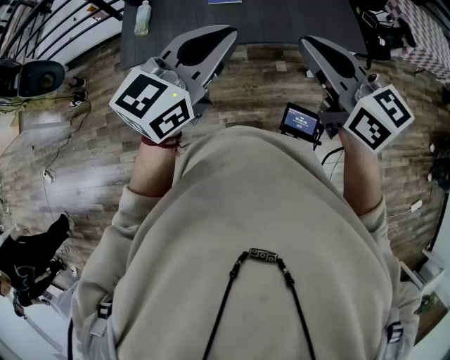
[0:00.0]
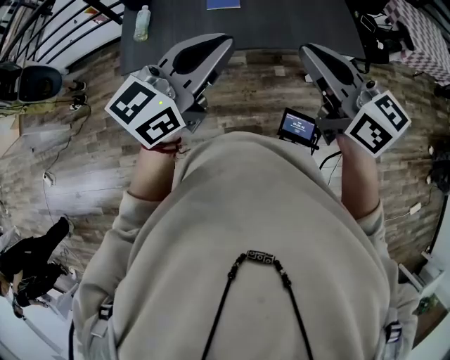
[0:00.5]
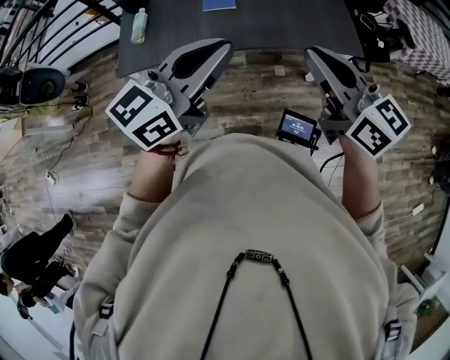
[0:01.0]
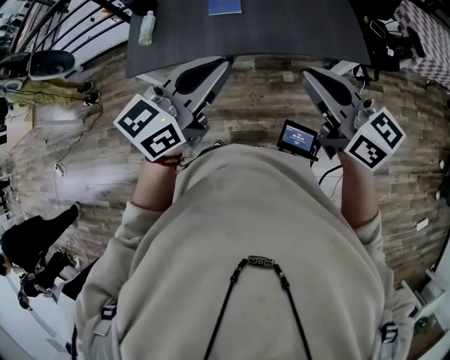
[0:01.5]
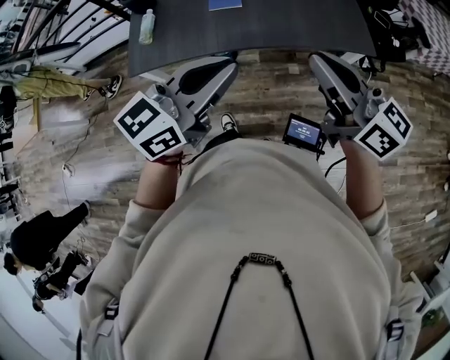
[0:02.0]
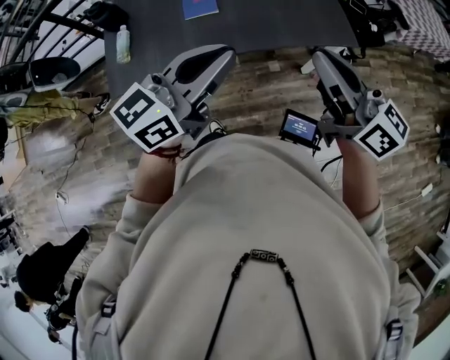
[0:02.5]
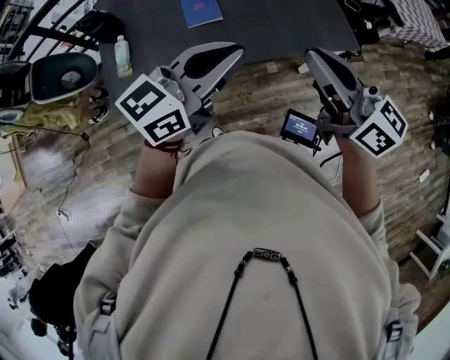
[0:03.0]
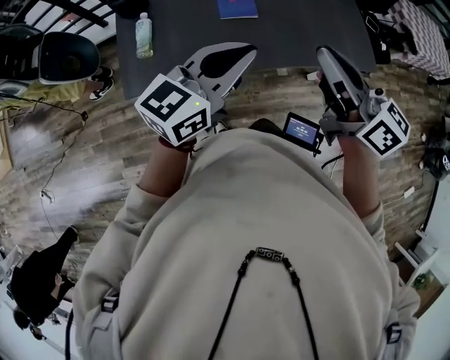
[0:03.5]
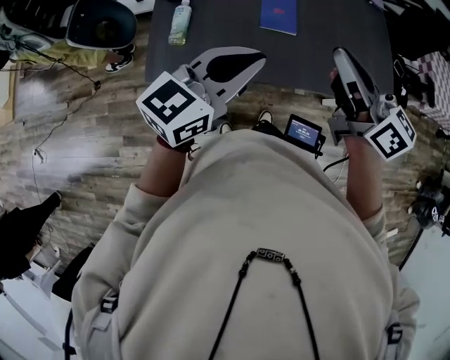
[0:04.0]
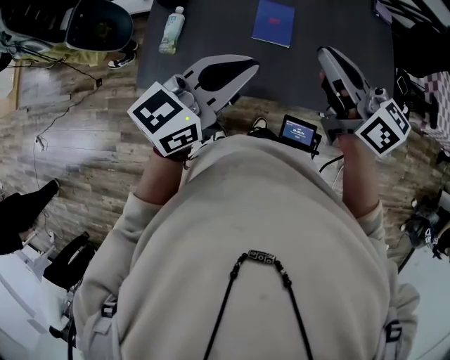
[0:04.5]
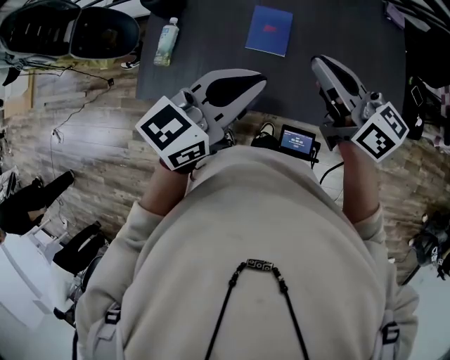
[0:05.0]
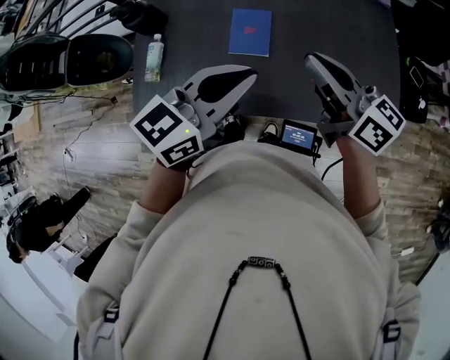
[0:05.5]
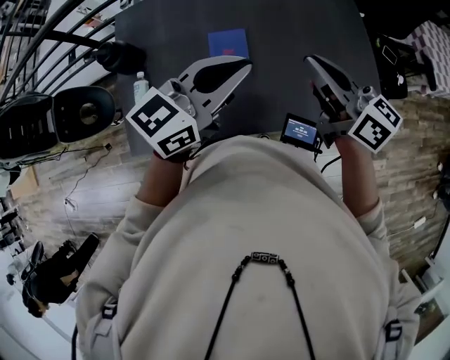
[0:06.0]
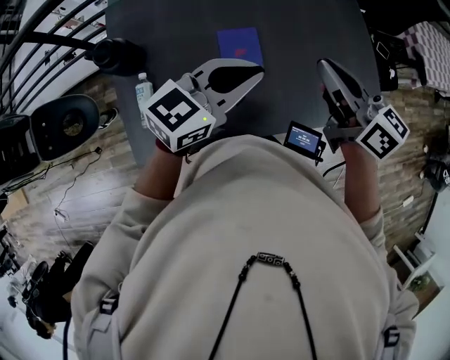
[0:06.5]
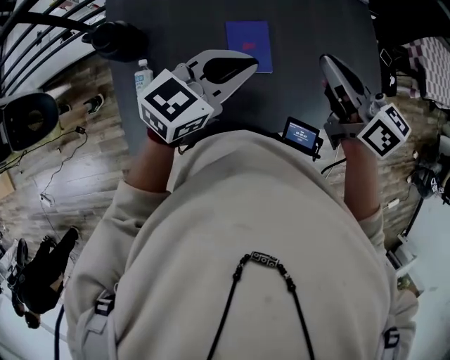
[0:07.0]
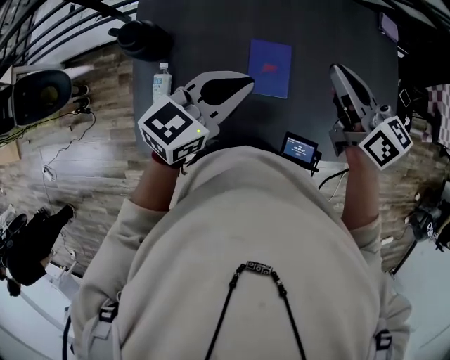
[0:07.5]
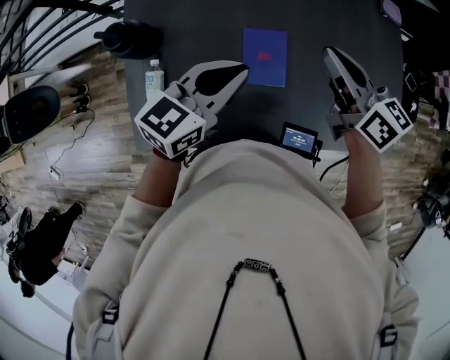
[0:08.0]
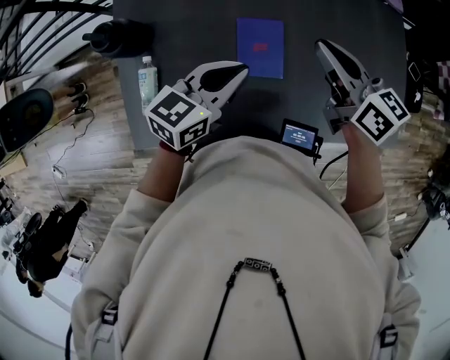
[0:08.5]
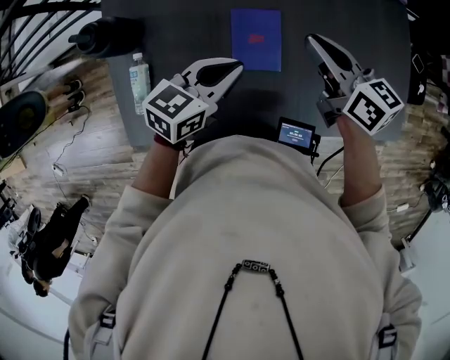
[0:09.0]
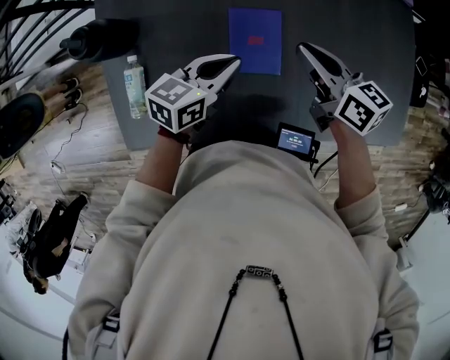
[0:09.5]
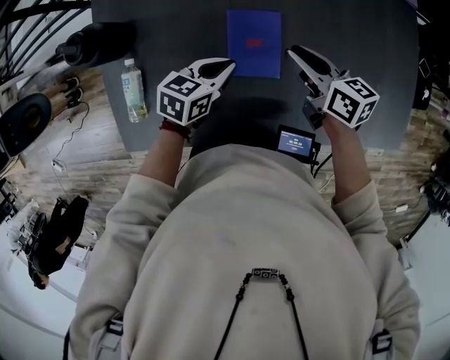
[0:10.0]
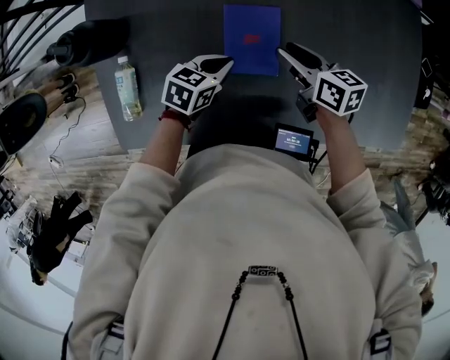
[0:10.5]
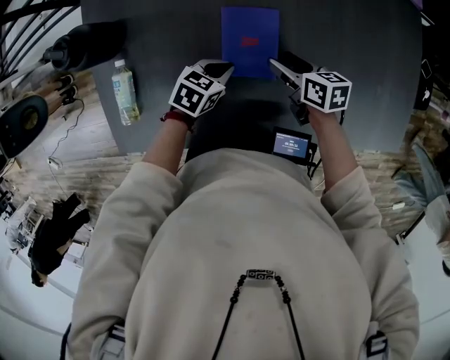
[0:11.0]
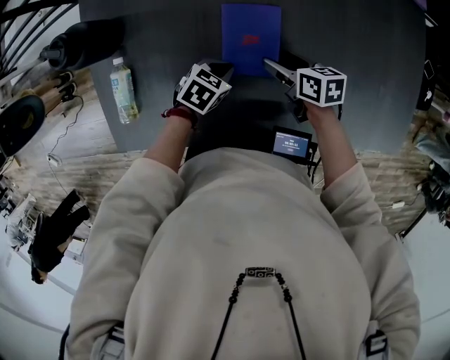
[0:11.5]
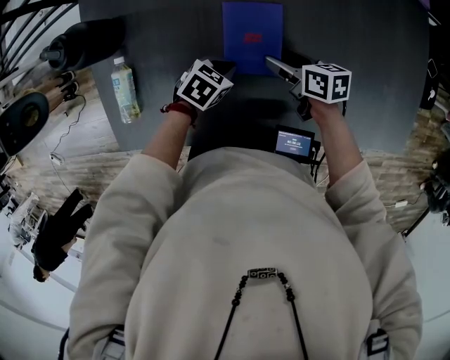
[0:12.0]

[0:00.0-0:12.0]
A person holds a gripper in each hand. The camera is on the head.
0:00.0 to 0:02.0: The right gripper ends up approximately 5 cm from where it was.
0:02.0 to 0:04.0: Both grippers move to the left and forward, approximately 25 cm.
0:04.0 to 0:06.0: Both grippers move forward and to the right, roughly 20 cm.
0:06.0 to 0:08.0: The right gripper goes approximately 15 cm forward, to the left and downward. The left gripper shifts some 15 cm to the left, downward and forward.
0:08.0 to 0:10.0: The grippers both shift downward by about 20 cm. The left gripper changes its angle by approximately 30 degrees.
0:10.0 to 0:12.0: Both grippers travel together downward, about 10 cm. The right gripper opens its fingers. The left gripper turns by about 30 degrees.

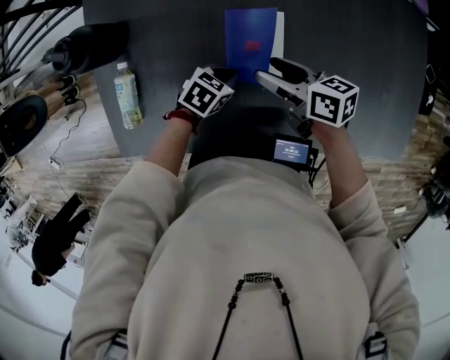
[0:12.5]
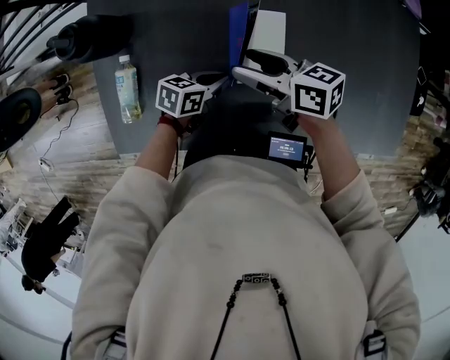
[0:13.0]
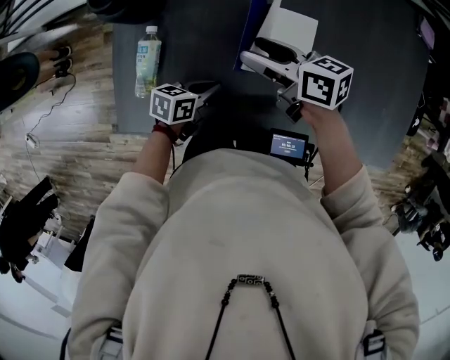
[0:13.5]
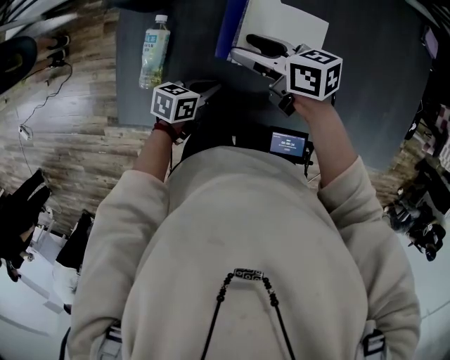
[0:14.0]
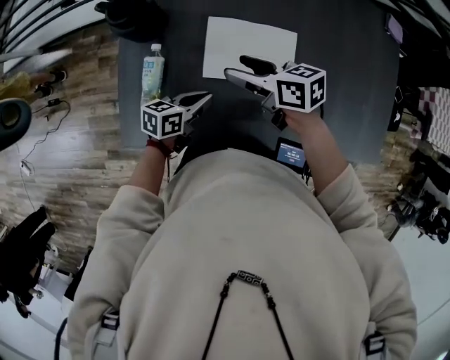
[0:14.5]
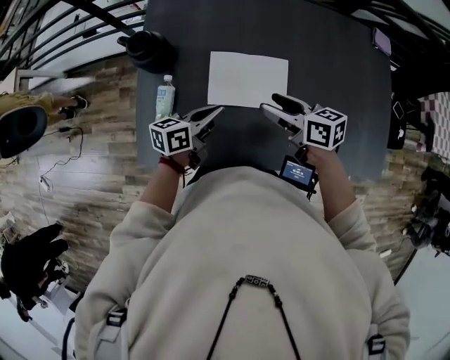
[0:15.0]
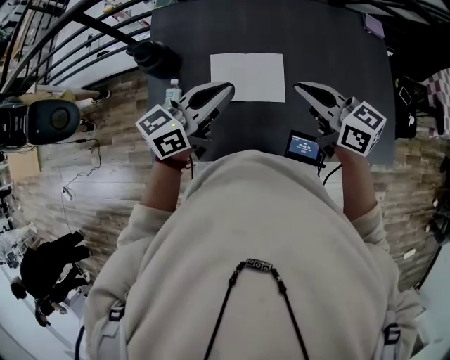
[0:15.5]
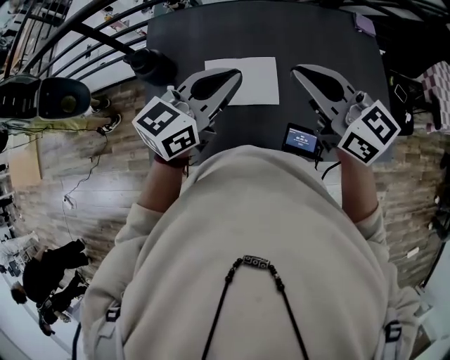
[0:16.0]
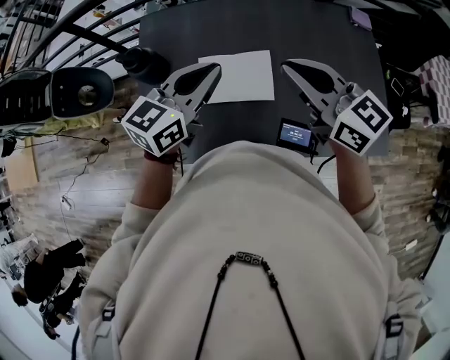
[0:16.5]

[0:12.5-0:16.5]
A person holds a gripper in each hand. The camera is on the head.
0:12.5 to 0:14.5: The left gripper moves some 15 cm, and turns by roughly 40 degrees; the right gripper shifts by some 15 cm.
0:14.5 to 0:16.5: Both grippers travel together upward, approximately 30 cm. The left gripper rotates approximately 40 degrees. Meanwhile the right gripper swivels about 40 degrees, and closes.

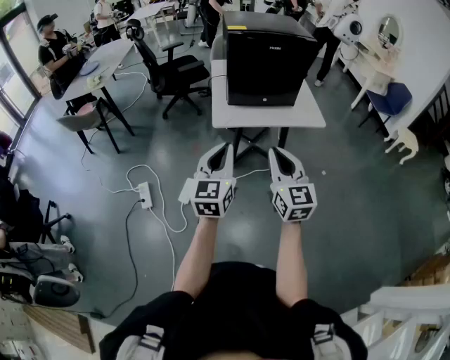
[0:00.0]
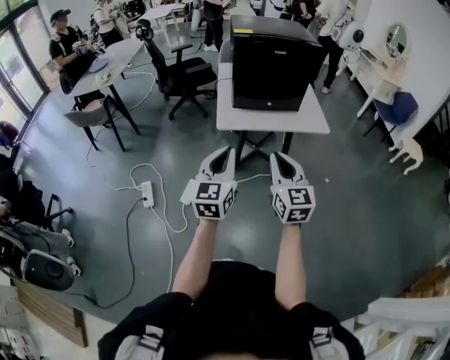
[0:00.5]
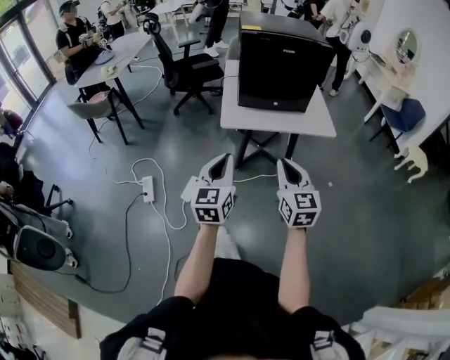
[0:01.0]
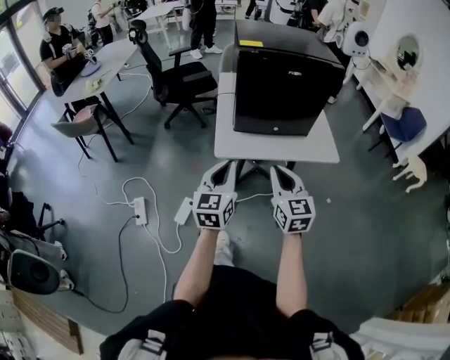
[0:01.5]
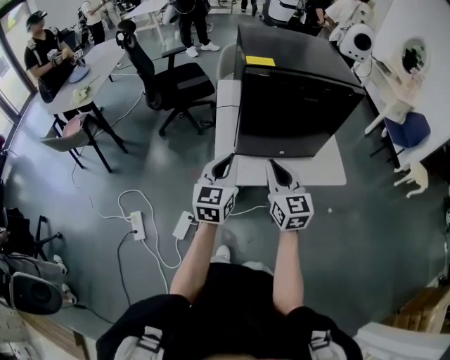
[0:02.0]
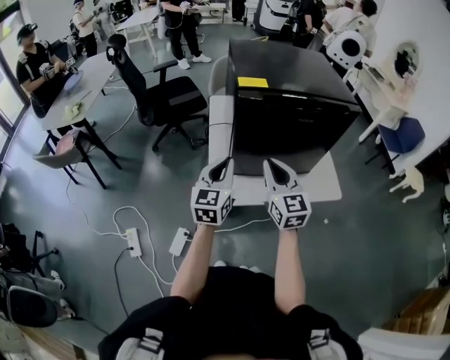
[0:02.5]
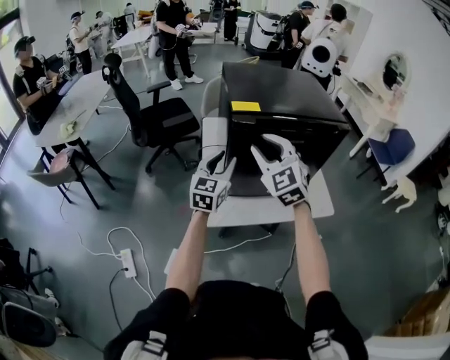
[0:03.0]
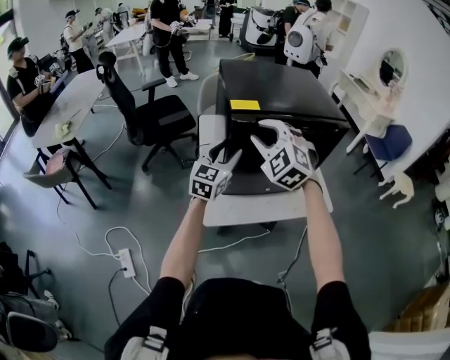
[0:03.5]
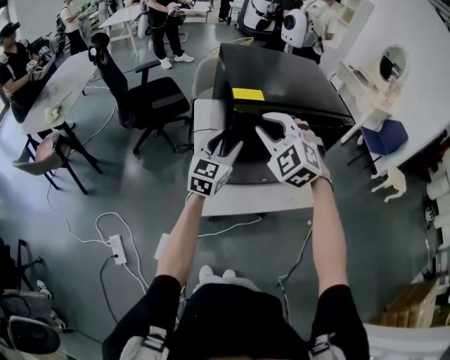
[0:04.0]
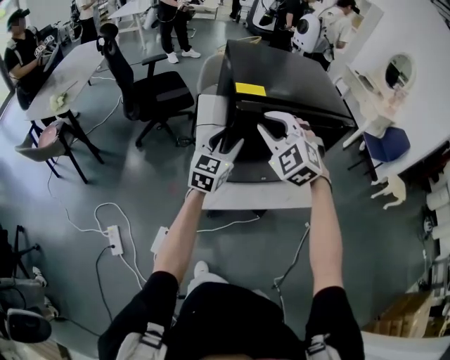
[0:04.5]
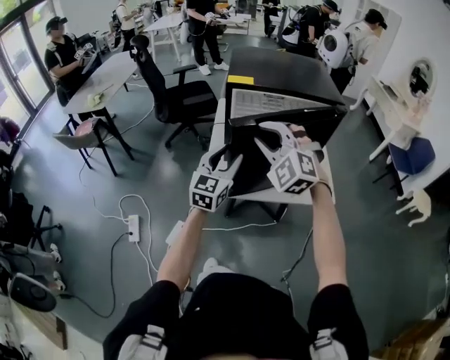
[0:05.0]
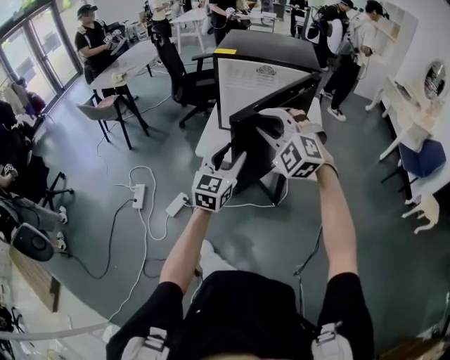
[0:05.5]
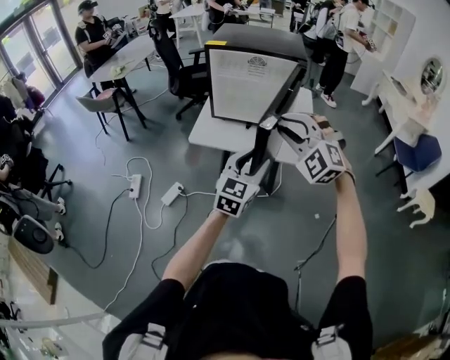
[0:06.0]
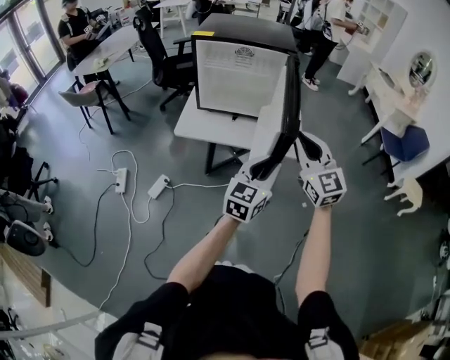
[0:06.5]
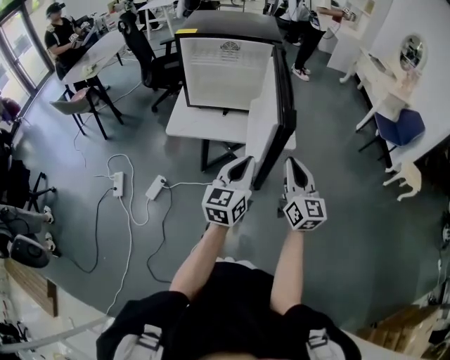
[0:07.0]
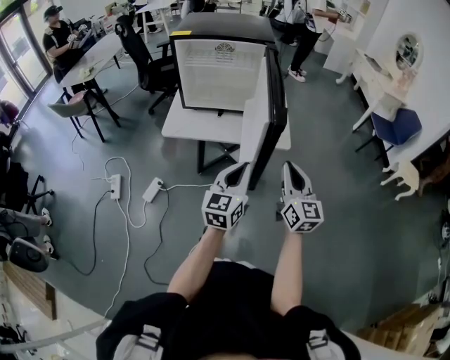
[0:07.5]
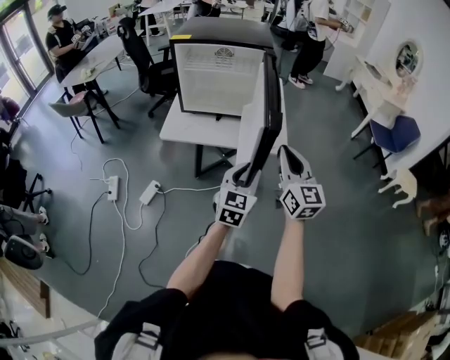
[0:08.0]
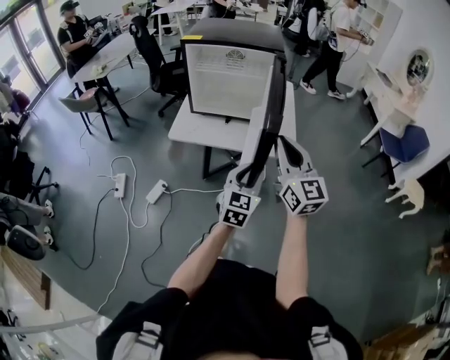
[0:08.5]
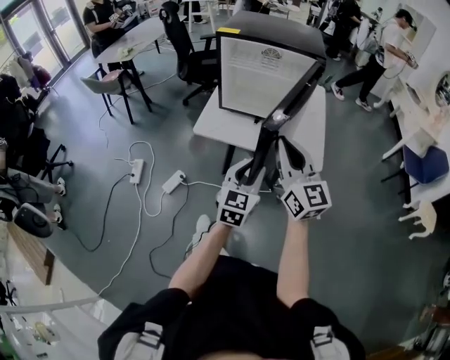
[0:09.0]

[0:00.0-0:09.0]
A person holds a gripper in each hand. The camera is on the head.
0:00.0 to 0:02.0: Both grippers move forward, approximately 35 cm.
0:02.0 to 0:04.5: The left gripper is displaced forward by some 15 cm, and opens its fingers, while the right gripper travels forward and upward by some 20 cm, and rotates around the line of its fingers by some 60 degrees, counterclockwise from behind.
0:04.5 to 0:07.0: Both grippers are carried backward and to the right, about 50 cm. The right gripper rolls clockwise, seen from behind, by approximately 60 degrees; the left gripper closes.
0:07.0 to 0:09.0: The left gripper travels downward and forward by about 5 cm, turns by some 20 degrees, and opens, while the right gripper shifts approximately 15 cm to the left, upward and forward, and rotates approximately 20 degrees.

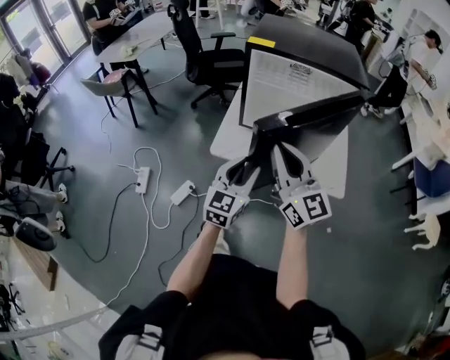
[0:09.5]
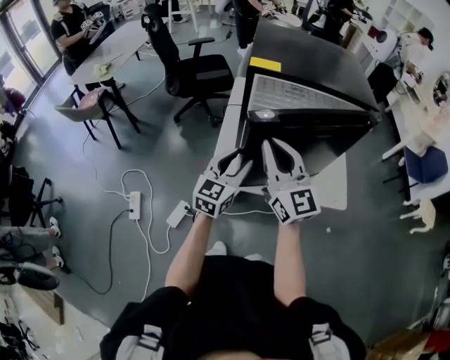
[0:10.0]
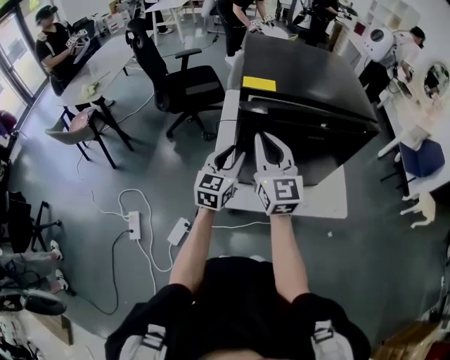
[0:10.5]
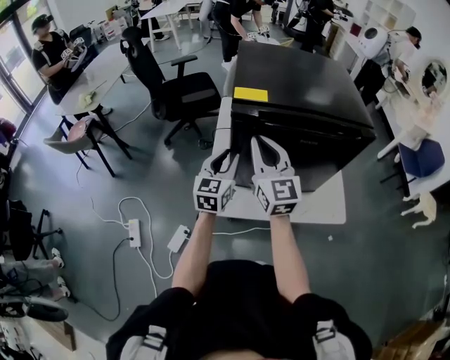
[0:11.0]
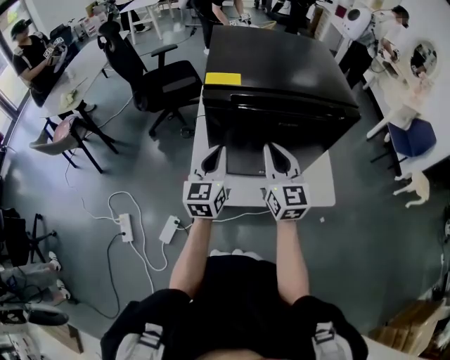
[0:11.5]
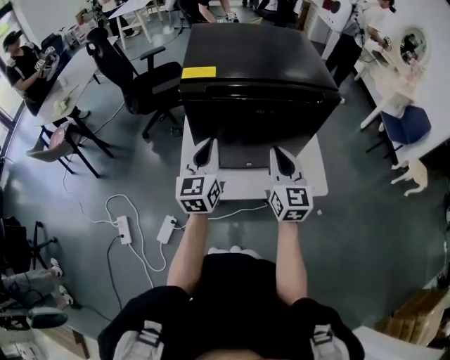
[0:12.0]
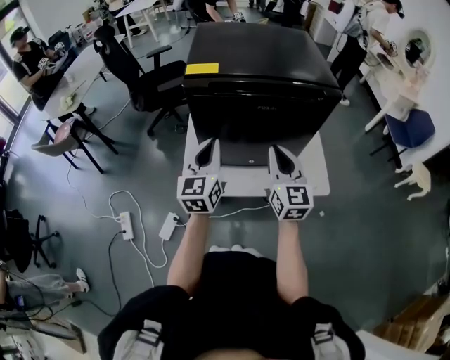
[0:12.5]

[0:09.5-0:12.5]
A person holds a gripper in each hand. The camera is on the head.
0:09.5 to 0:11.0: Both grippers travel together forward, roughly 25 cm. The right gripper rotates roughly 20 degrees.
0:11.0 to 0:12.5: The right gripper heads to the right, covering some 15 cm; the left gripper heads to the right and backward, covering approximately 10 cm, and closes its fingers.
